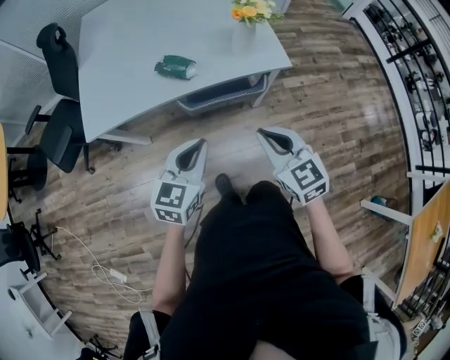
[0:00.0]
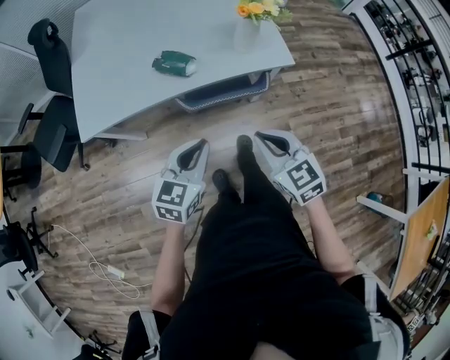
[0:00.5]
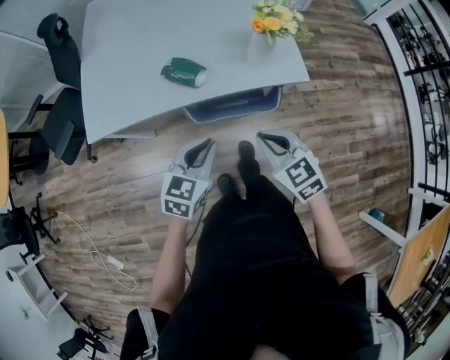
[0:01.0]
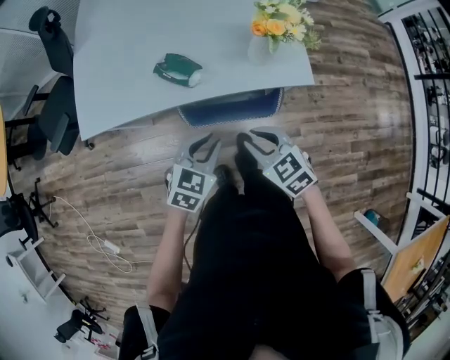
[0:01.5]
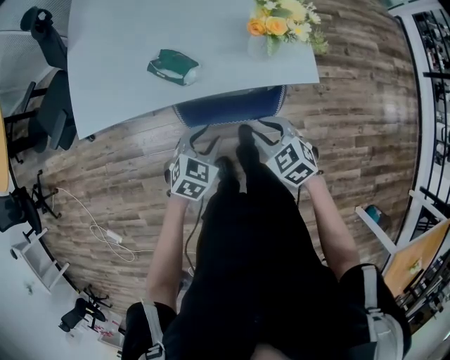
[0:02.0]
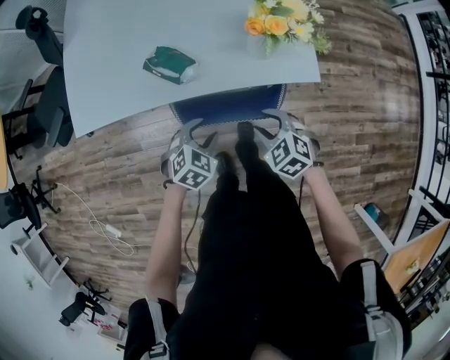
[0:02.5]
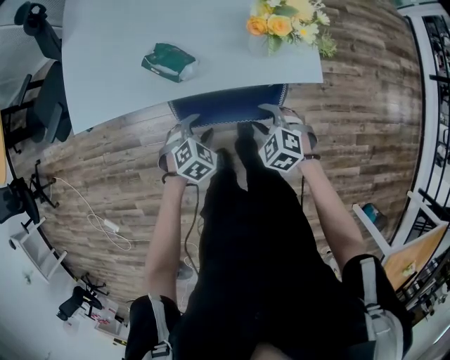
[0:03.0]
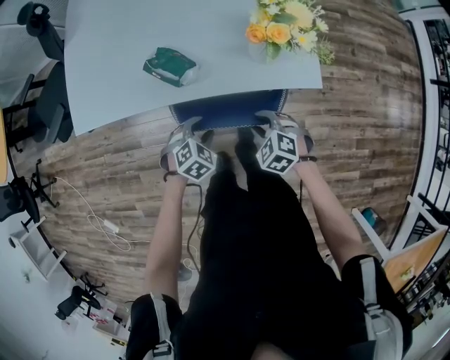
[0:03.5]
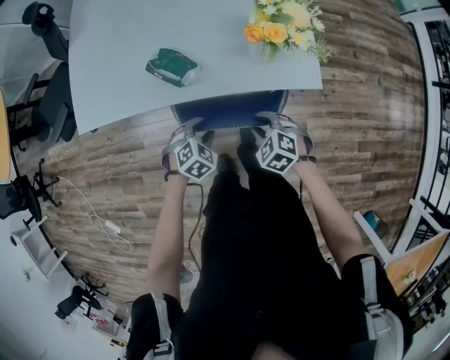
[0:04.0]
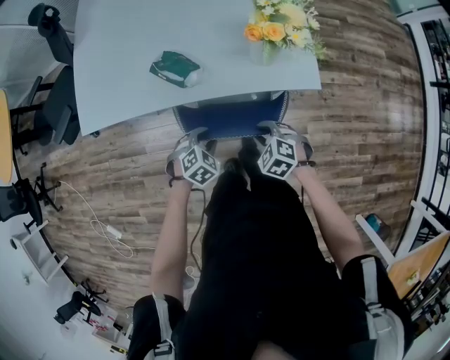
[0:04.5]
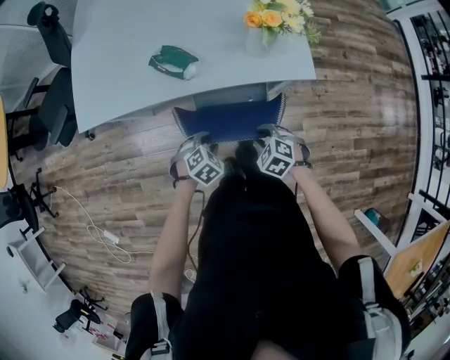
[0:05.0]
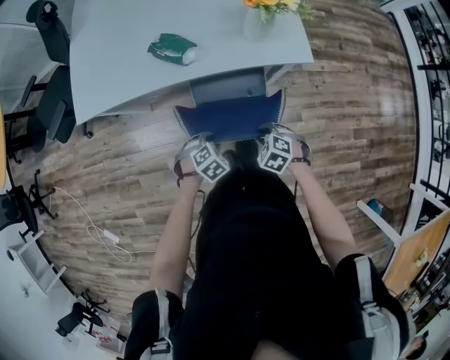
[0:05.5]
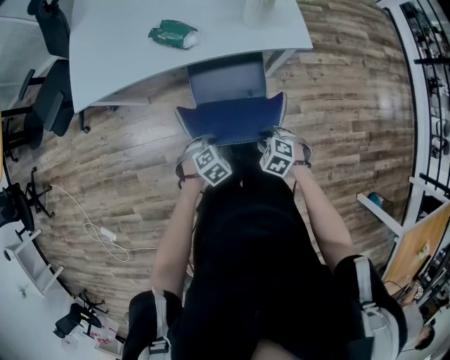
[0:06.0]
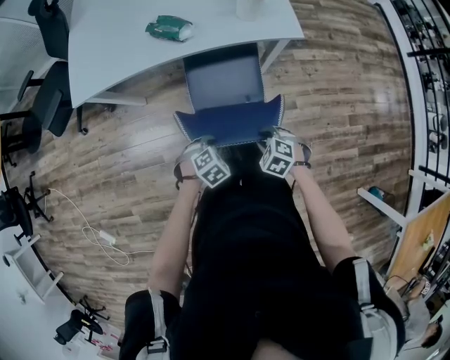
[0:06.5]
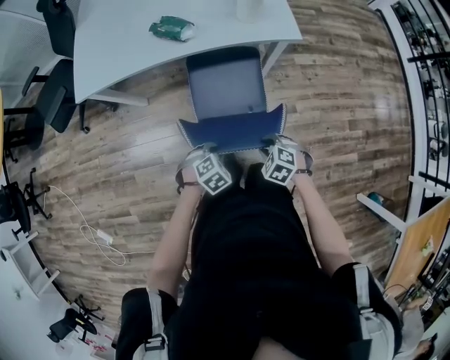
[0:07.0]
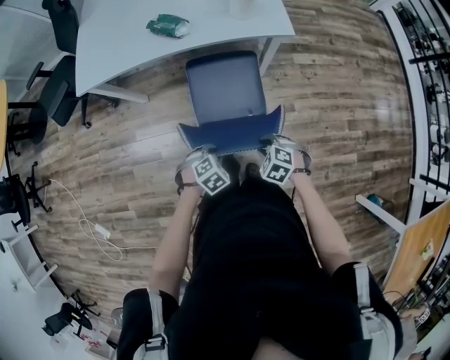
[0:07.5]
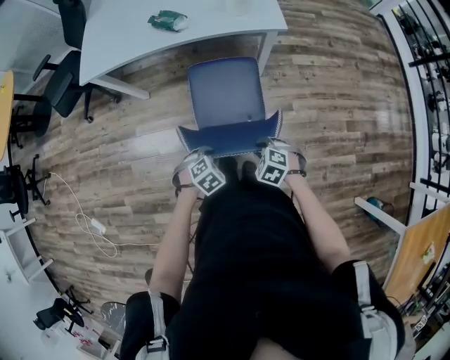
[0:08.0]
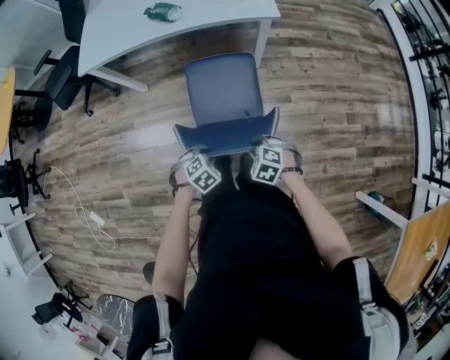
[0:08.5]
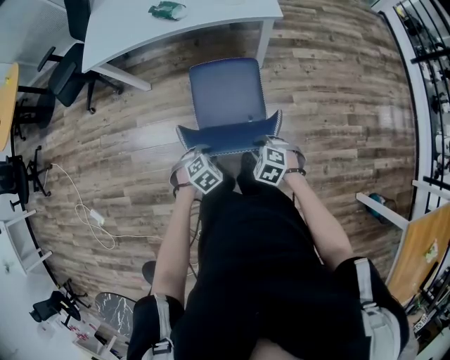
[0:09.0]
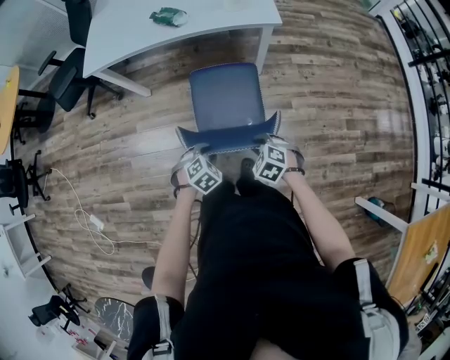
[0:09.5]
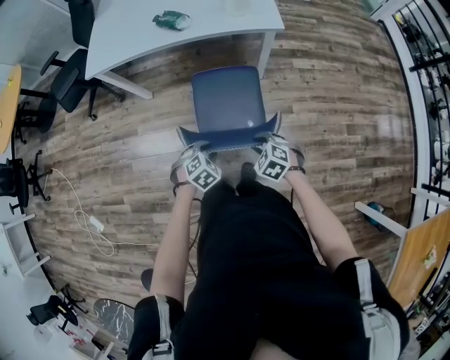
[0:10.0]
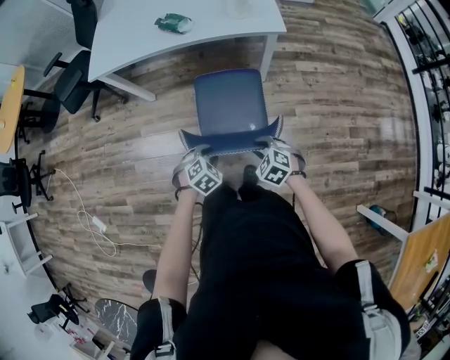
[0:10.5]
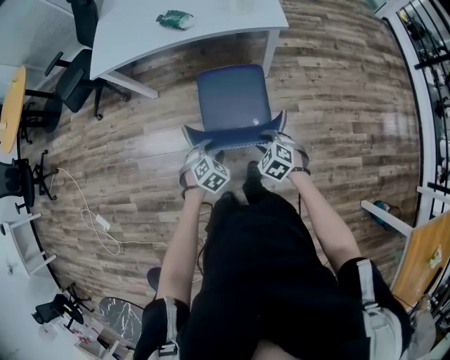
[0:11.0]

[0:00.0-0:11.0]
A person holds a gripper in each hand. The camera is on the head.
0:00.0 to 0:02.0: The right gripper moves downward and forward, about 25 cm, turns by some 30 degrees, and opens its fingers. Meanwhile the left gripper heads downward, forward and to the right, covering some 25 cm, tilts its fingers about 30 degrees downward, and opens its fingers.
0:02.0 to 0:03.5: Both grippers move downward, roughly 10 cm.
0:03.5 to 0:05.5: The left gripper moves roughly 15 cm; the right gripper shifts by about 15 cm.
0:05.5 to 0:07.5: The right gripper moves about 20 cm. The left gripper changes place by roughly 20 cm.
0:07.5 to 0:09.0: Both grippers travel together backward, roughly 15 cm.
0:09.0 to 0:11.0: Both grippers move forward, some 5 cm.

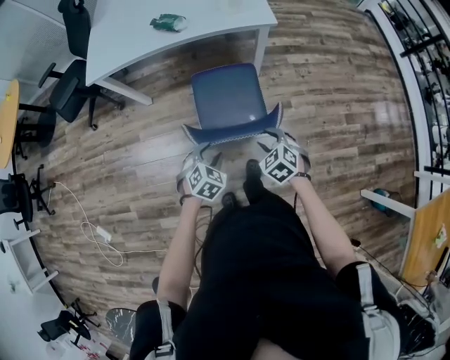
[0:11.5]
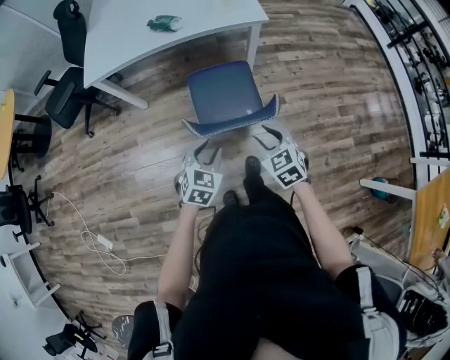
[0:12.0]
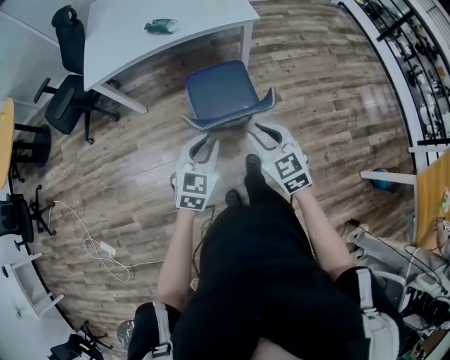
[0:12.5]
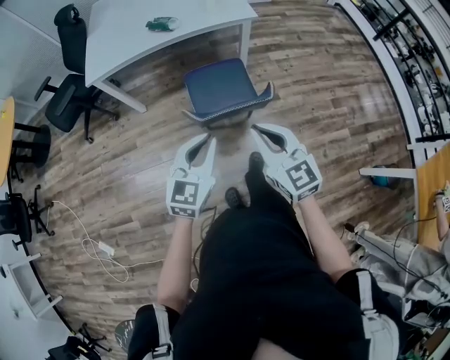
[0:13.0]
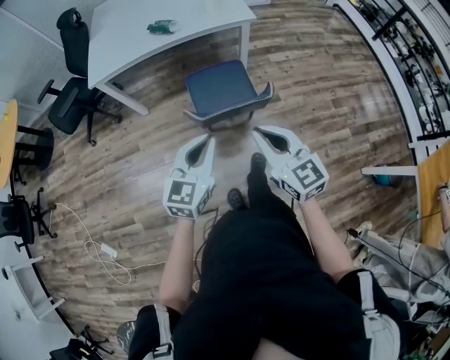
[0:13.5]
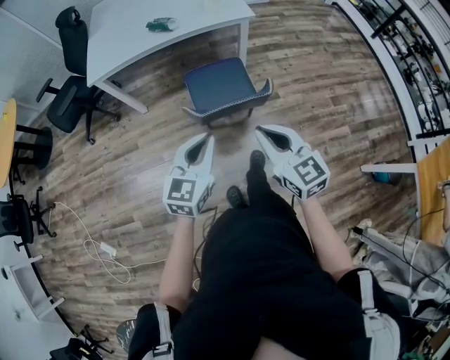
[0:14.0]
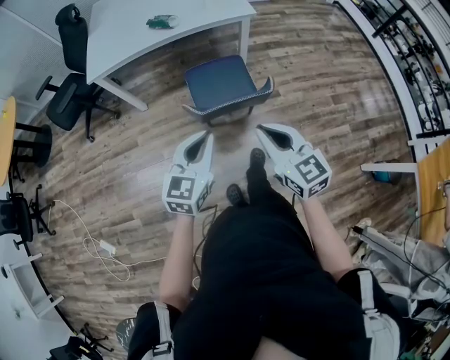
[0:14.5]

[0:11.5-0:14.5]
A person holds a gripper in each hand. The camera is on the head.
0:11.5 to 0:13.0: The two grippers go some 25 cm upward and backward. The right gripper tips its fingers upward by roughly 40 degrees, and closes, while the left gripper angles its fingers upward, by about 40 degrees, and closes its fingers.
0:13.0 to 0:14.5: There are only small adjustments of the grippers.

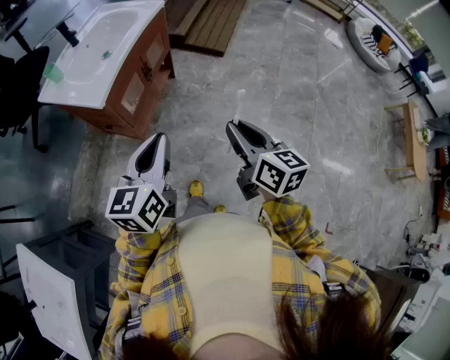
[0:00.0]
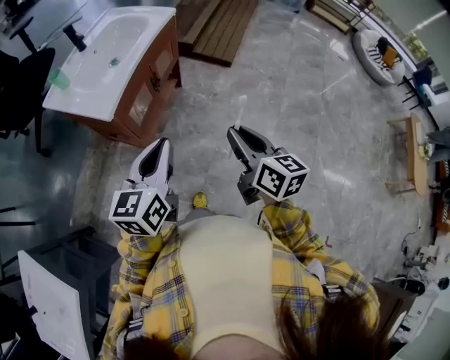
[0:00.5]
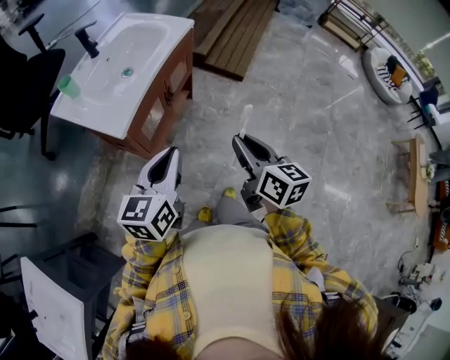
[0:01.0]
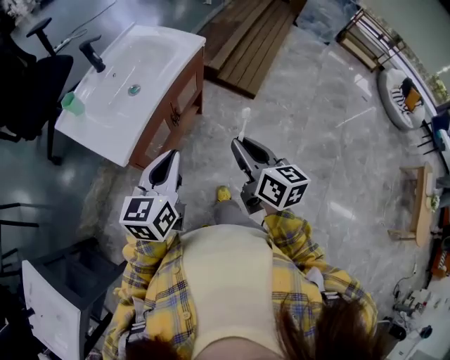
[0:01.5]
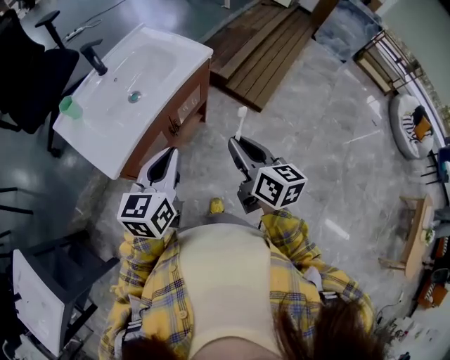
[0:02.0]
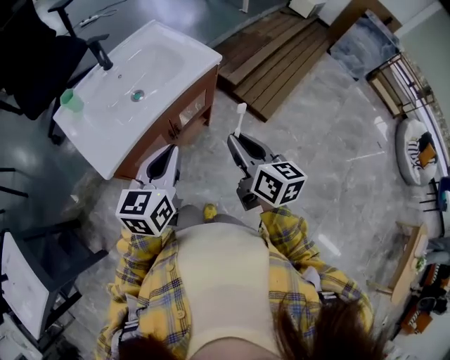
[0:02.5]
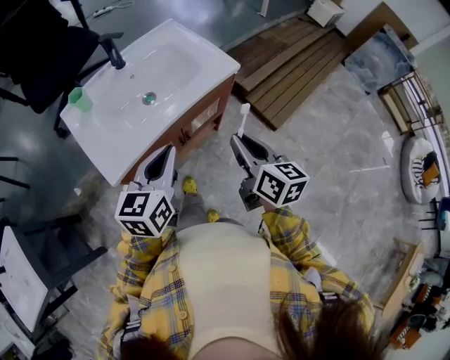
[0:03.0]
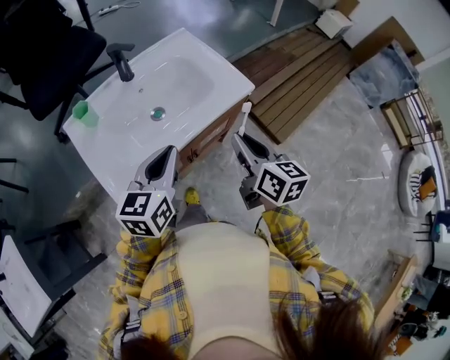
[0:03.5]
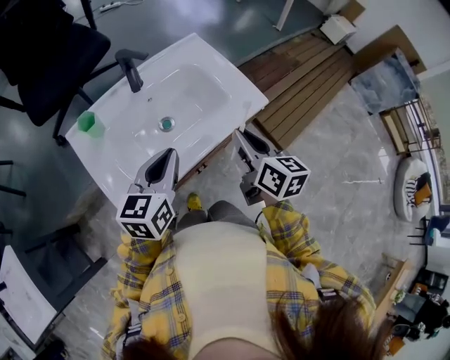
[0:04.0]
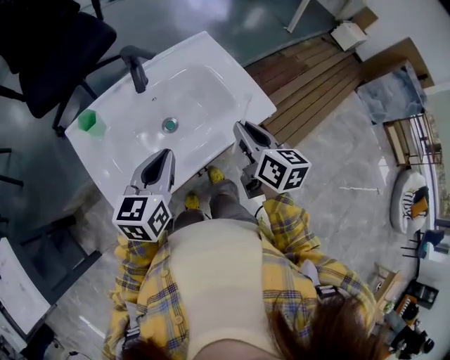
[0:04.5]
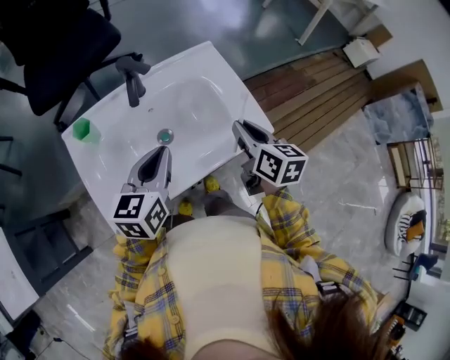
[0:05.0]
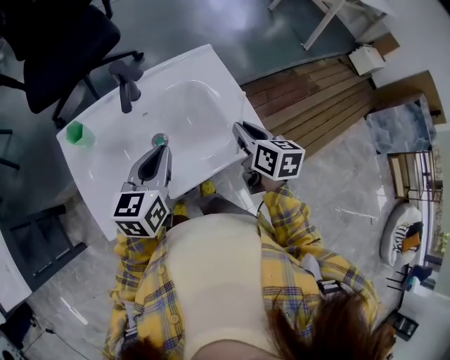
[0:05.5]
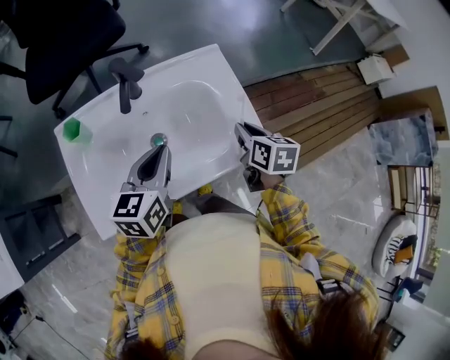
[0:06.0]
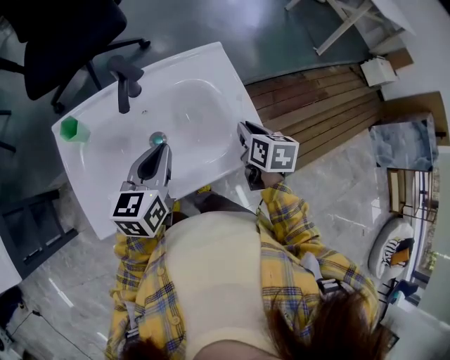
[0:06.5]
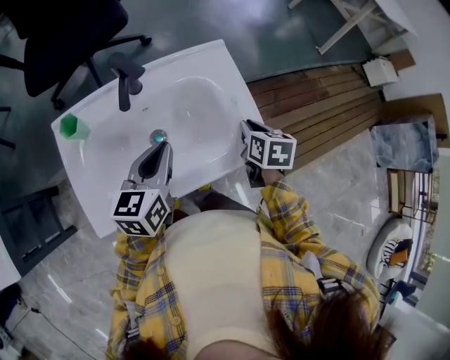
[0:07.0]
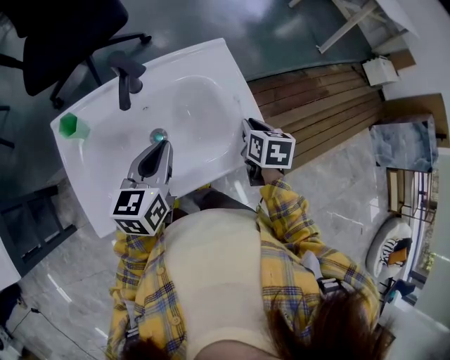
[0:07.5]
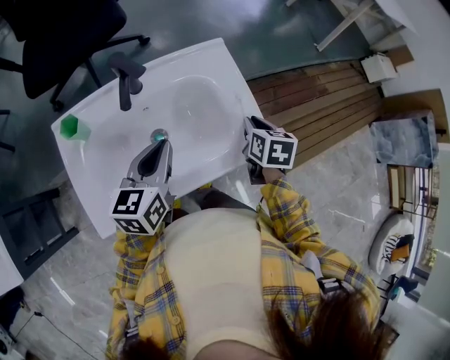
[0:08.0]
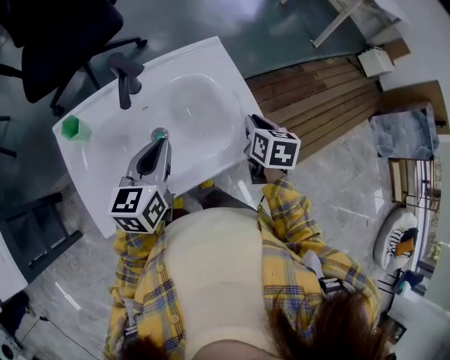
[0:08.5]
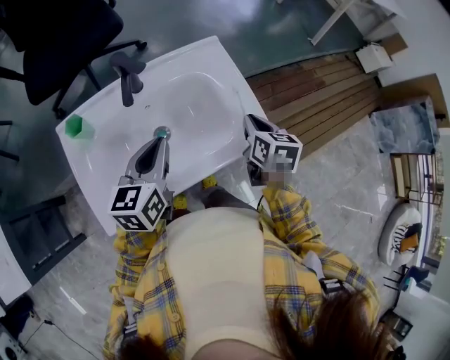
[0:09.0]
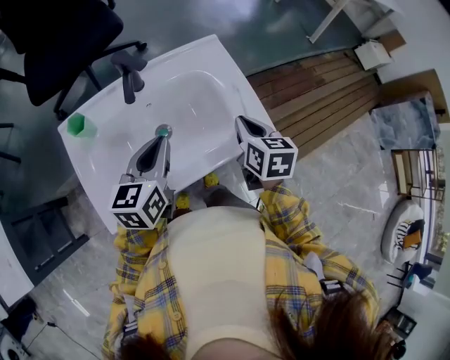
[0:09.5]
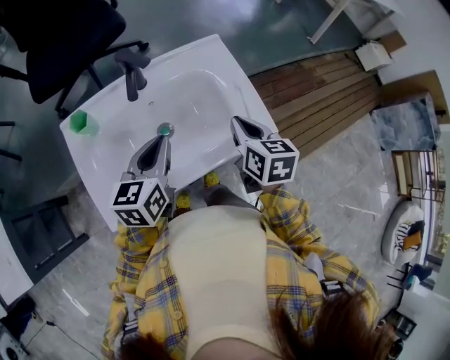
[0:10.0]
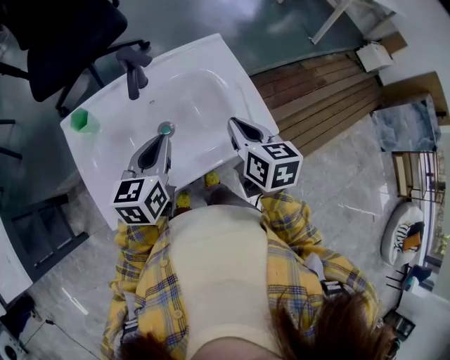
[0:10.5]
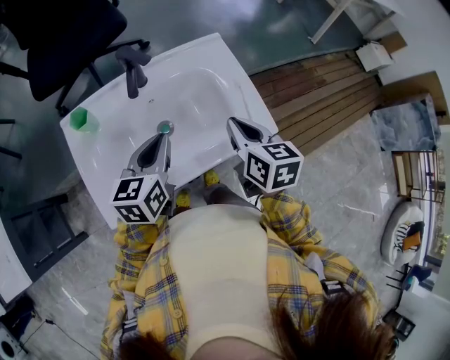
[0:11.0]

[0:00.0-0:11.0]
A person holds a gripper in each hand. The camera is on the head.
0:00.0 to 0:02.0: Both grippers move forward, some 30 cm.
0:02.0 to 0:03.5: The two grippers go approximately 20 cm forward.
0:03.5 to 0:05.5: The grippers both shift forward by approximately 20 cm.
0:05.5 to 0:07.5: The right gripper heads downward, covering roughly 5 cm.
0:07.5 to 0:09.0: The right gripper ends up some 5 cm from where it was.
0:09.0 to 0:11.0: The right gripper moves to the left and upward, approximately 10 cm.

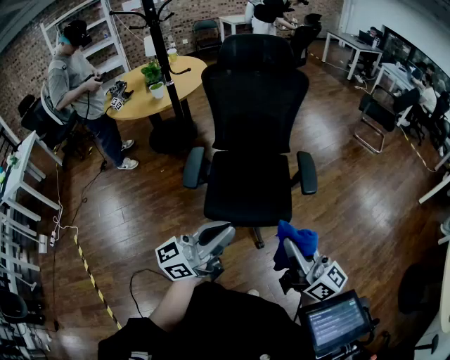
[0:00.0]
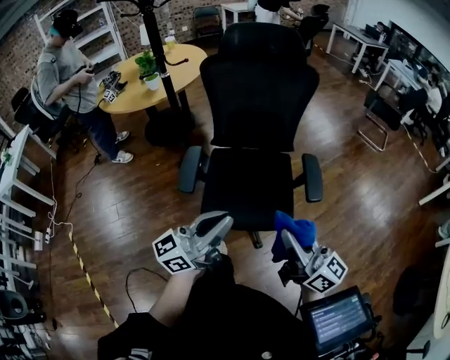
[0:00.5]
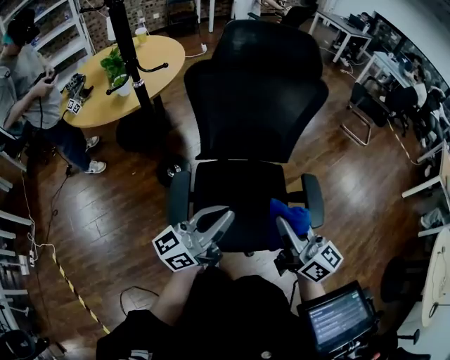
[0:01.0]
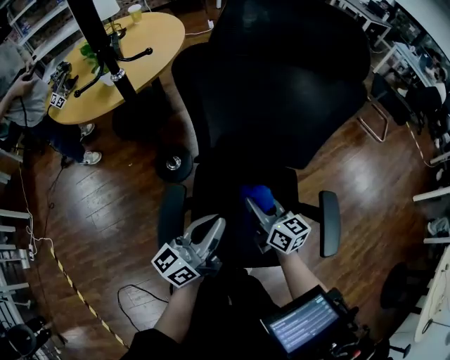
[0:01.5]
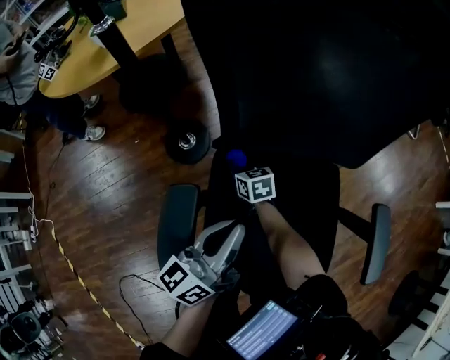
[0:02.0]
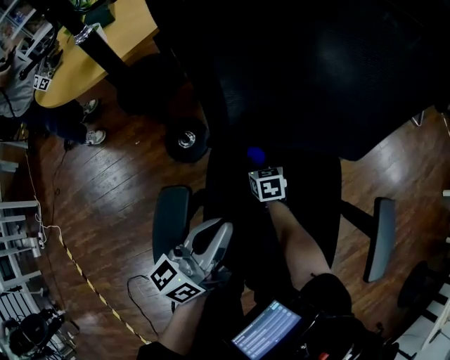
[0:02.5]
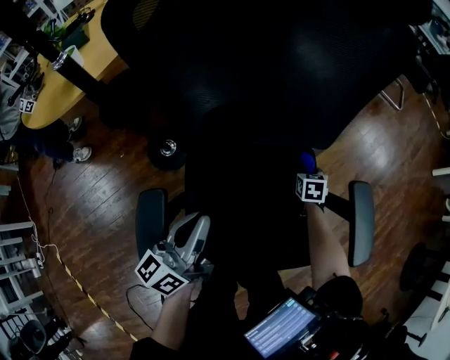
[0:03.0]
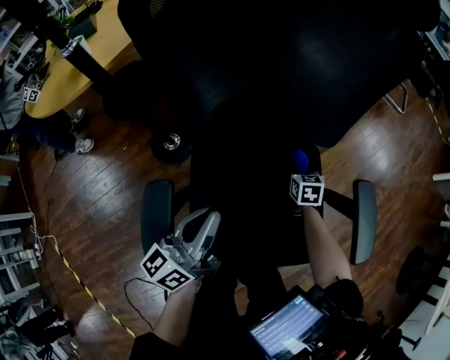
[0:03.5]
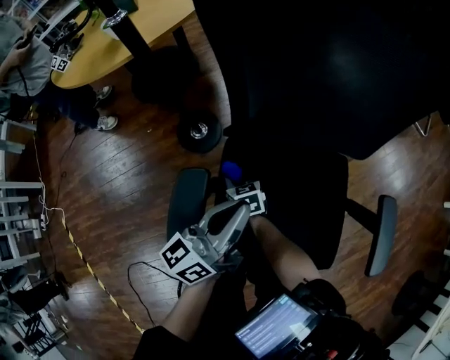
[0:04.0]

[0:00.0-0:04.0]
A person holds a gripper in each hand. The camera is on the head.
0:00.0 to 0:02.0: The two grippers travel together, forward, about 60 cm. The left gripper goes approximately 25 cm downward, and swivels some 30 degrees. Meanwhile the right gripper moves downward, some 50 cm, and tilts its fingers approximately 60 degrees downward.
